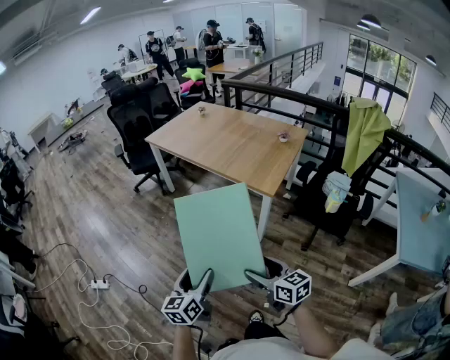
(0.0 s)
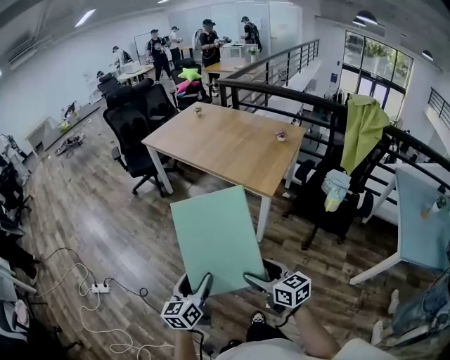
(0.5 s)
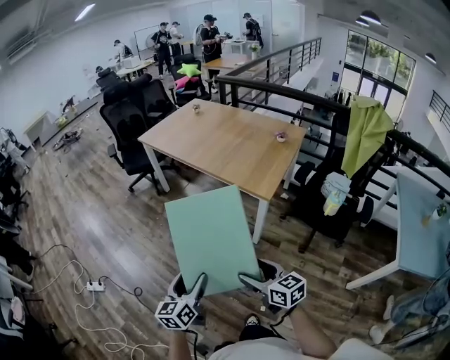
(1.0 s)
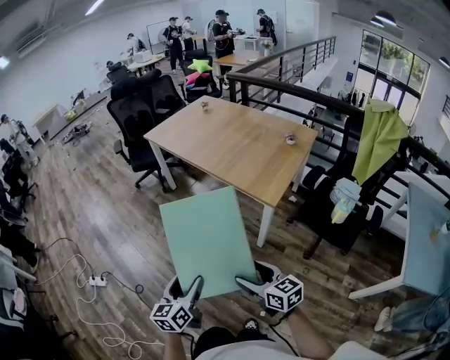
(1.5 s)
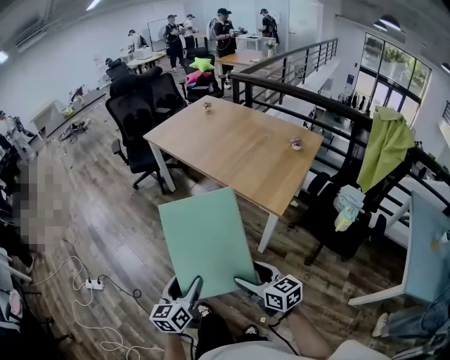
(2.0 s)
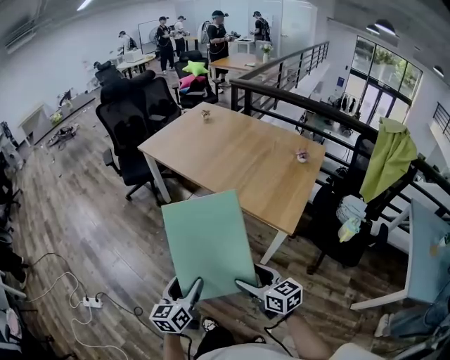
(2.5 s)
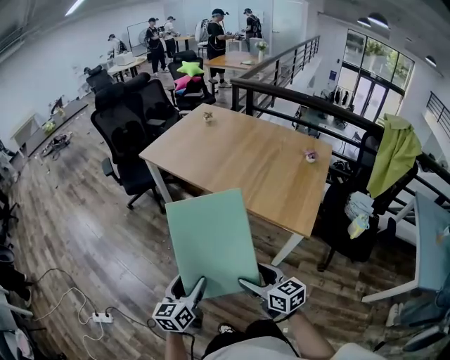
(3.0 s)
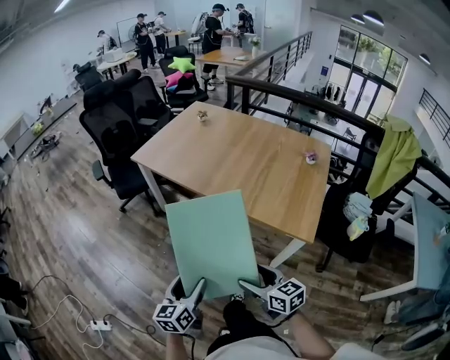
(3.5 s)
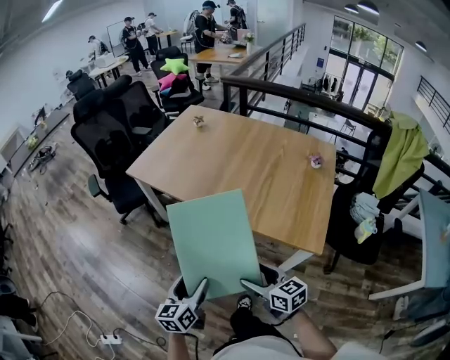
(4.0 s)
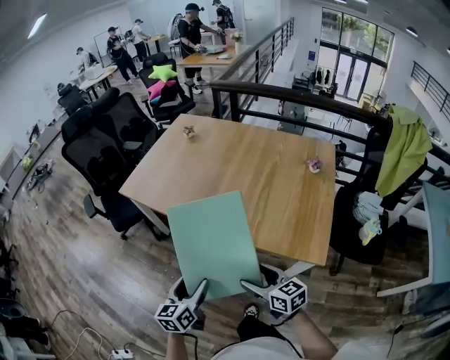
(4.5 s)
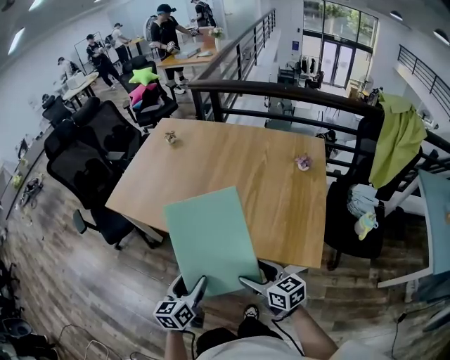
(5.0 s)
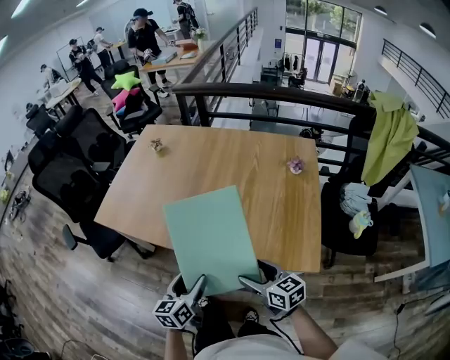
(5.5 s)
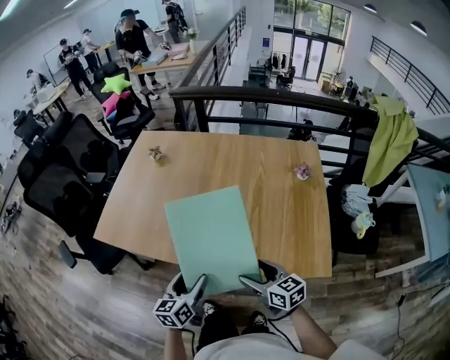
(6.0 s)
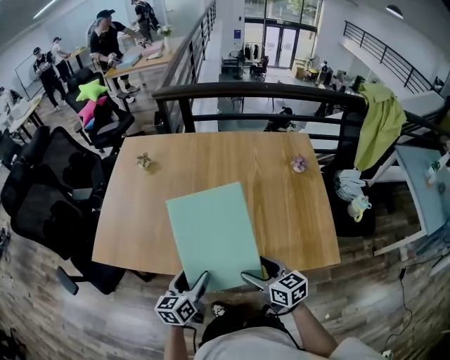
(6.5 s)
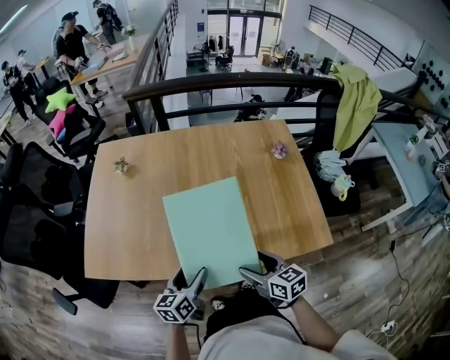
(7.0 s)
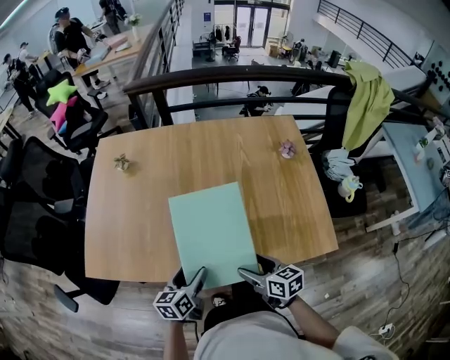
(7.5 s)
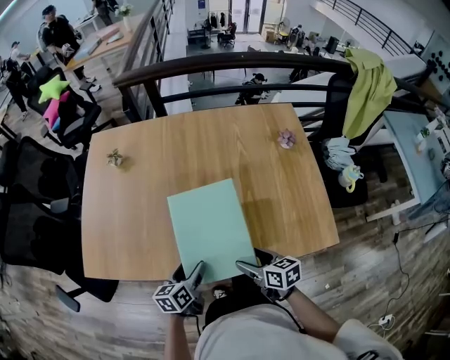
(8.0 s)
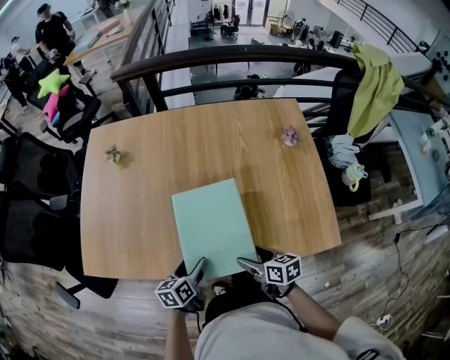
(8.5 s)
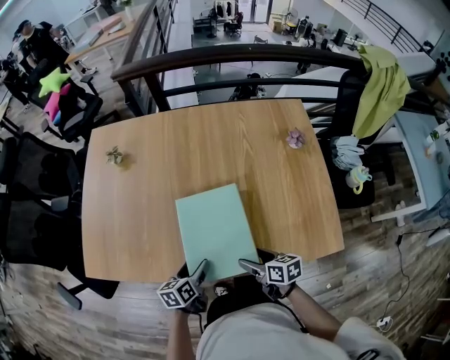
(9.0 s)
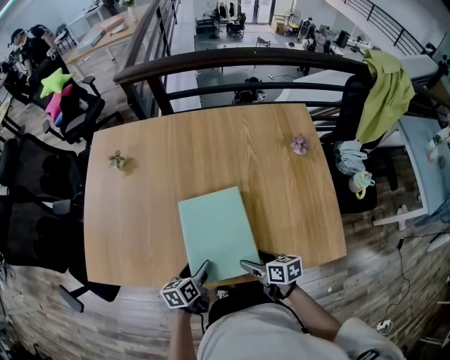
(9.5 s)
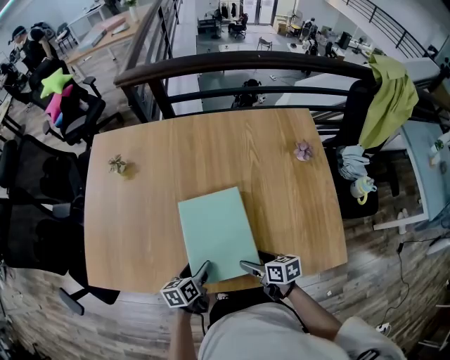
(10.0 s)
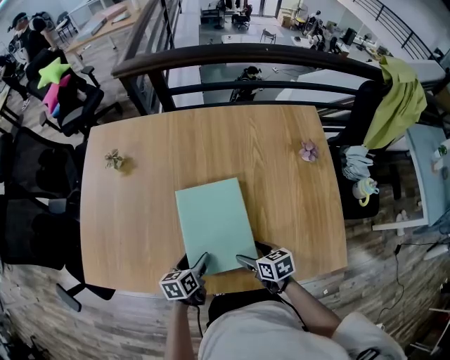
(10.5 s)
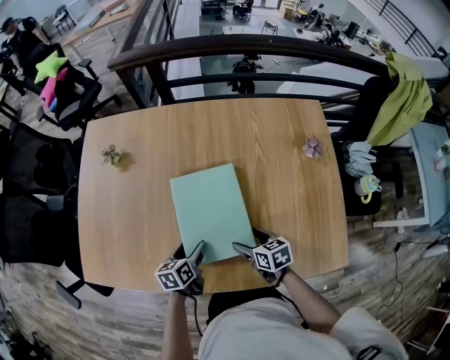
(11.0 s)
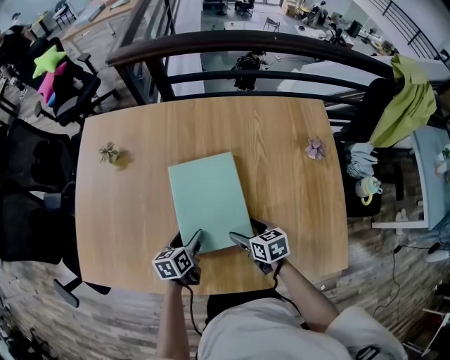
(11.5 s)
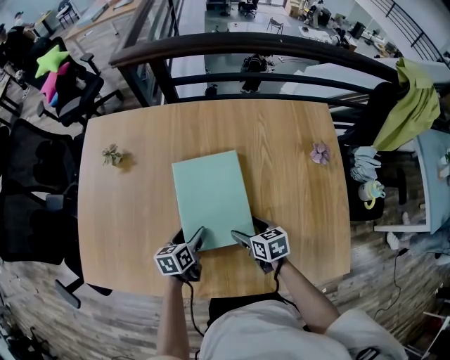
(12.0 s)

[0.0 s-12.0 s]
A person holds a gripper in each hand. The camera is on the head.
0.0 to 2.0 s: Both grippers travel together forward, some 15 cm.
2.0 to 4.0 s: Both grippers travel together forward, about 35 cm.
4.0 to 6.0 s: Both grippers move forward, about 25 cm.
6.0 to 8.0 s: The right gripper travels downward and forward by about 10 cm, and swivels roughly 30 degrees, while the left gripper travels forward and downward by roughly 15 cm, and swivels approximately 20 degrees.
8.0 to 10.0 s: Both grippers move forward and downward, about 10 cm.
10.0 to 12.0 s: The grippers both shift forward by roughly 15 cm.

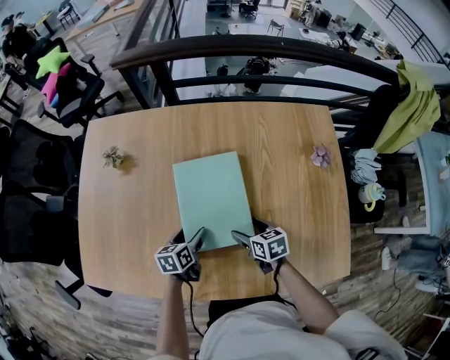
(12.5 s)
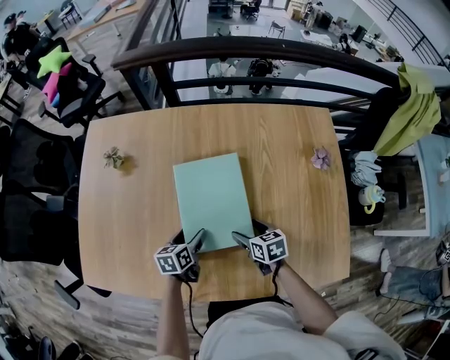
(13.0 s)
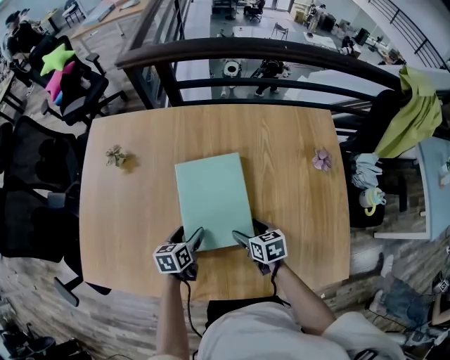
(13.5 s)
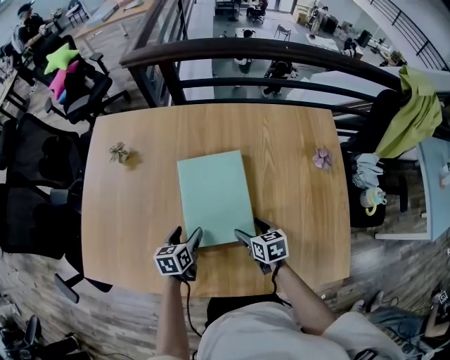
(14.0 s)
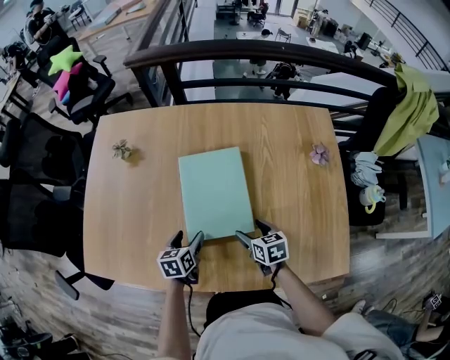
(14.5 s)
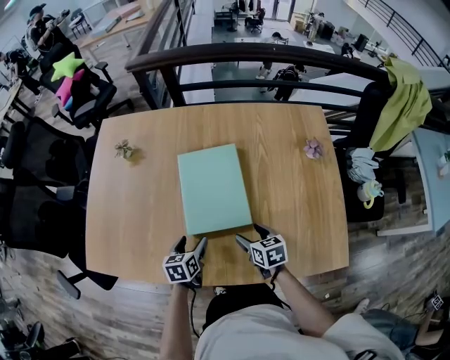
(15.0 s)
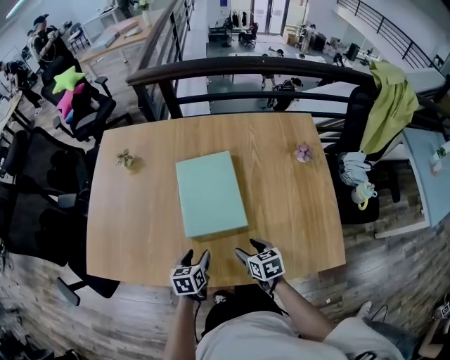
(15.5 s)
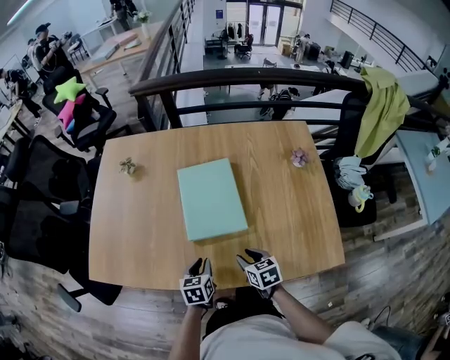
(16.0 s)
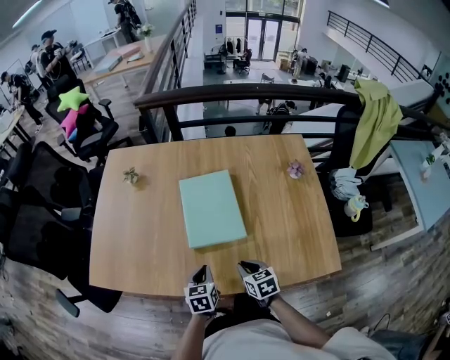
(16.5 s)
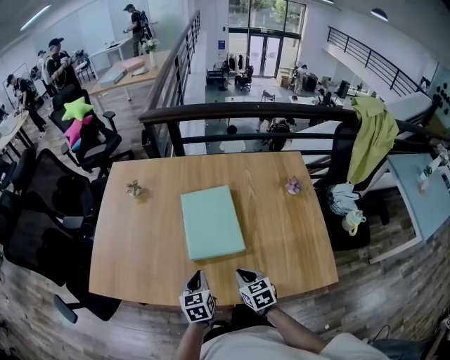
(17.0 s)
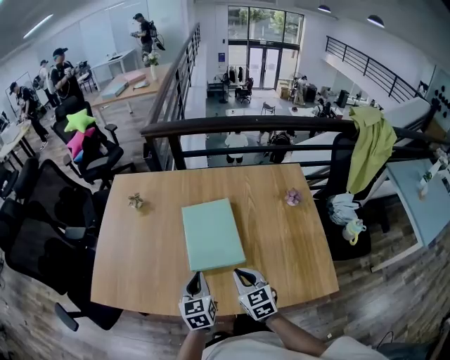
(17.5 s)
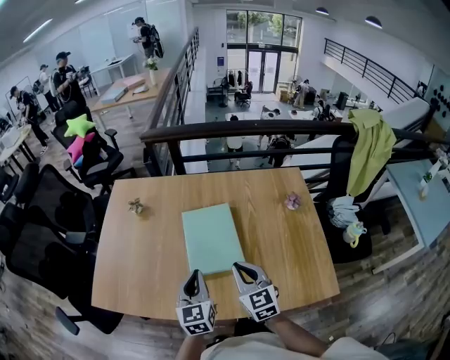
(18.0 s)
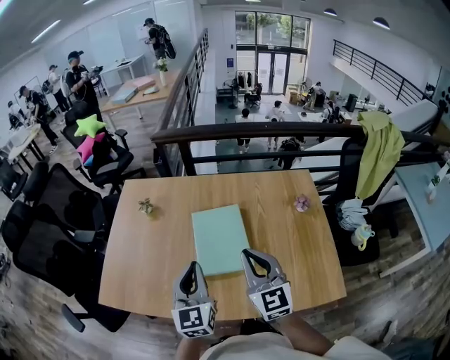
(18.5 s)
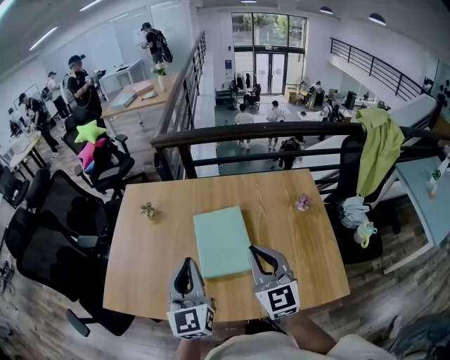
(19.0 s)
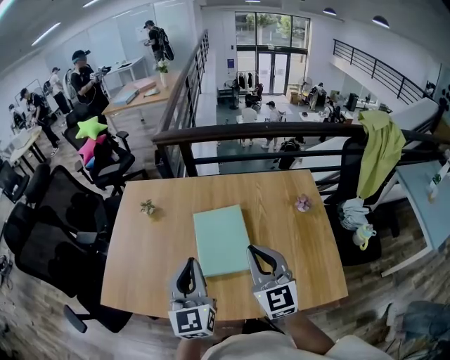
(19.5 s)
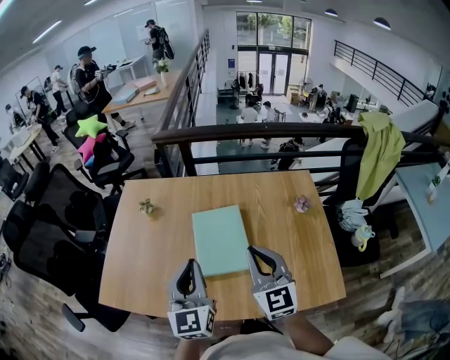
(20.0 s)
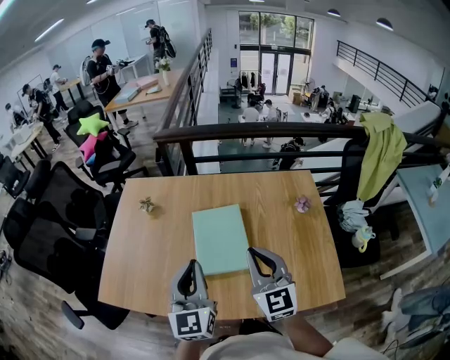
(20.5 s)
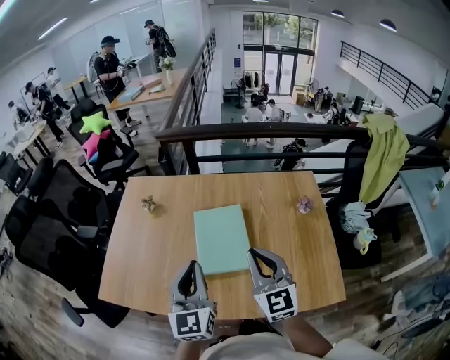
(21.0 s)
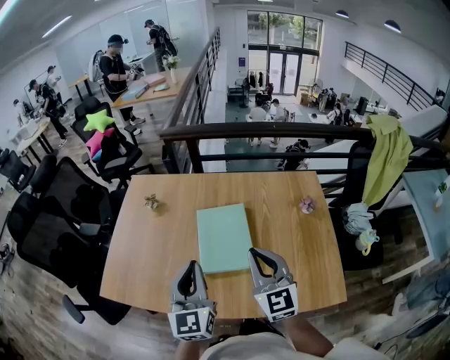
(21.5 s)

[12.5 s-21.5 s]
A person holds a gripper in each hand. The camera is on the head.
12.5 to 14.5 s: The left gripper shifts by roughly 5 cm.
14.5 to 17.0 s: Both grippers travel together backward and upward, some 15 cm. The right gripper closes its fingers; the left gripper closes up.
17.0 to 19.5 s: Both grippers travel together upward, some 25 cm. The left gripper tilts its fingers about 40 degrees upward. The right gripper tilts its fingers roughly 40 degrees upward.
19.5 to 21.5 s: The grippers move only a little.

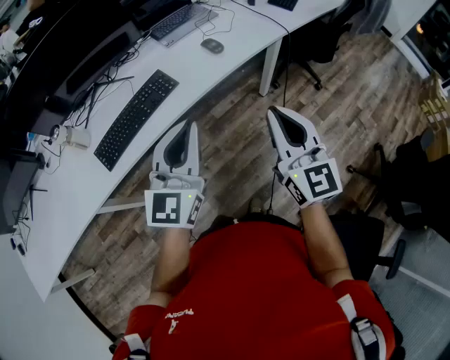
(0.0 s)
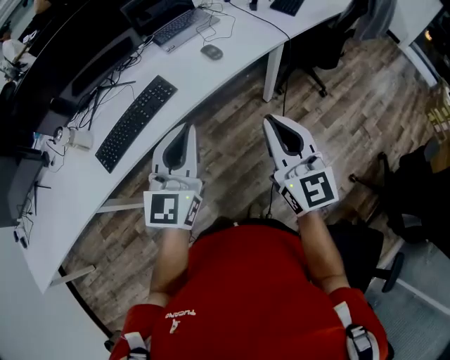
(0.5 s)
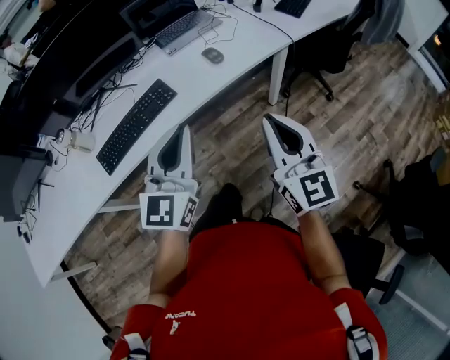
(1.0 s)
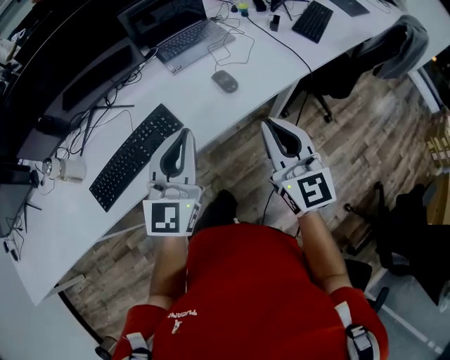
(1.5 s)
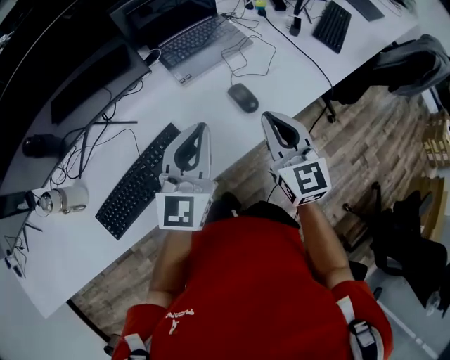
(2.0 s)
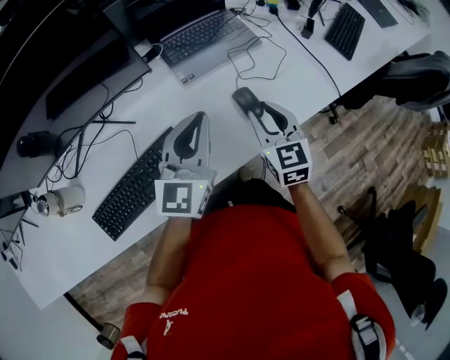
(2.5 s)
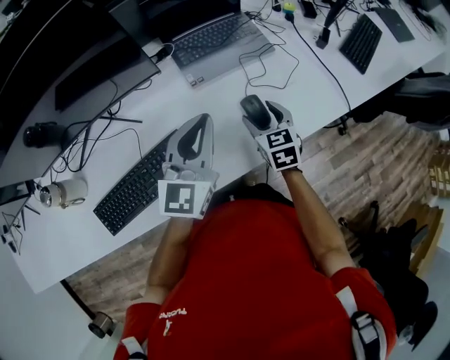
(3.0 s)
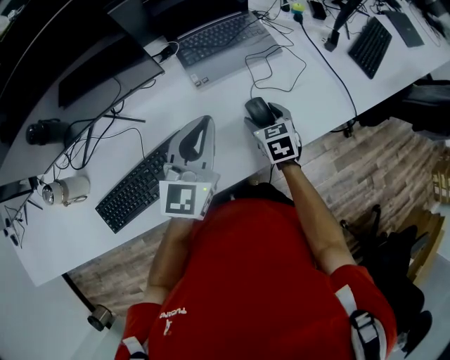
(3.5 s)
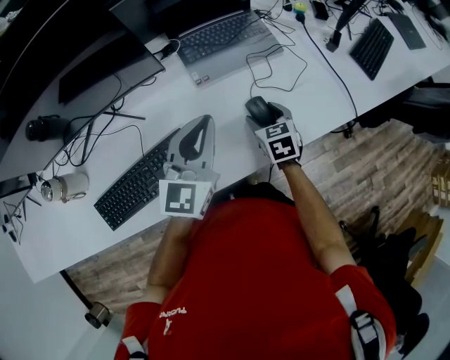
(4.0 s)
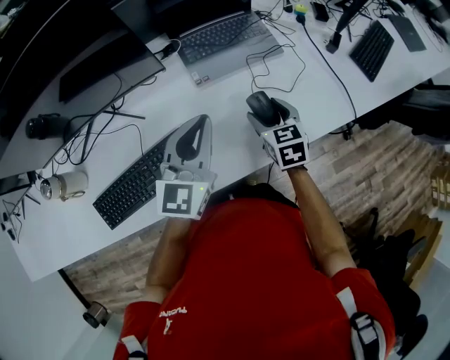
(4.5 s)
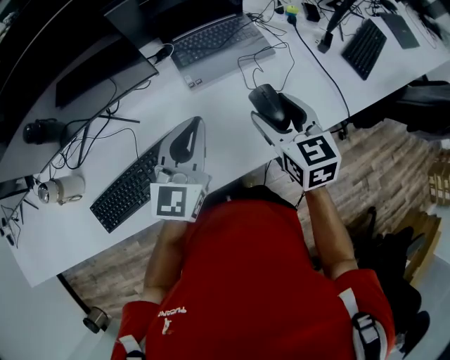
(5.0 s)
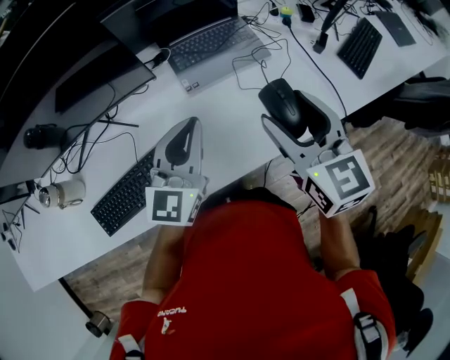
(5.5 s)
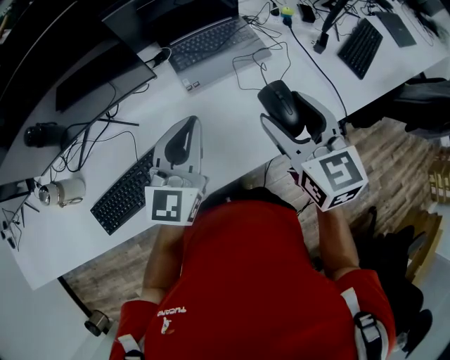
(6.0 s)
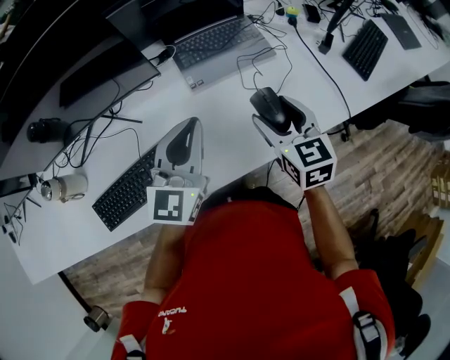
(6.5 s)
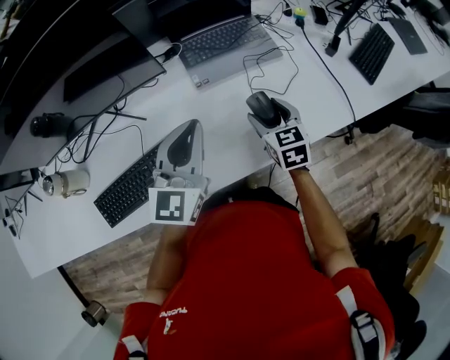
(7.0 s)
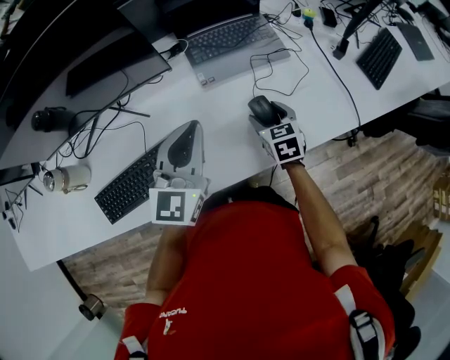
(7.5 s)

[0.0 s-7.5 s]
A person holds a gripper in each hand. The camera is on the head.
0.0 to 2.0 s: Both grippers move forward, about 35 cm.
2.0 to 4.0 s: The left gripper heads forward, covering some 10 cm, while the right gripper travels downward and forward by about 25 cm, points its fingers approximately 40 degrees further downward, and opens.
4.0 to 5.5 s: The right gripper is displaced upward by about 30 cm, and turns by about 30 degrees.
5.5 to 7.5 s: The right gripper goes approximately 25 cm downward, and rotates some 30 degrees.
